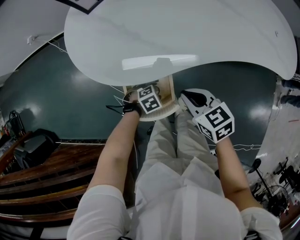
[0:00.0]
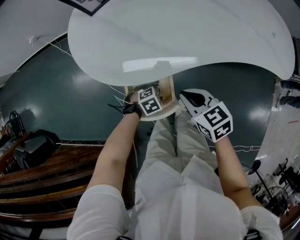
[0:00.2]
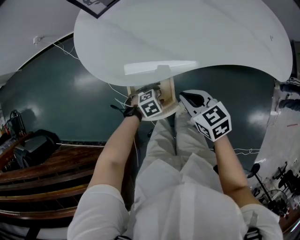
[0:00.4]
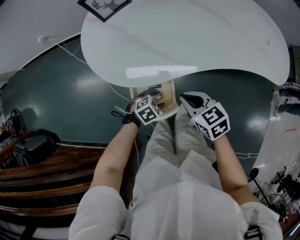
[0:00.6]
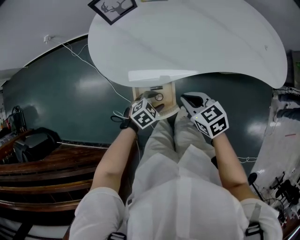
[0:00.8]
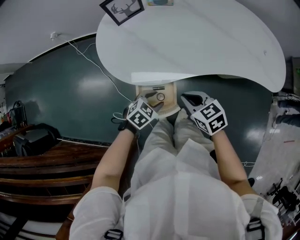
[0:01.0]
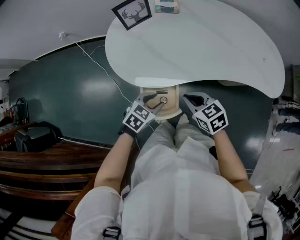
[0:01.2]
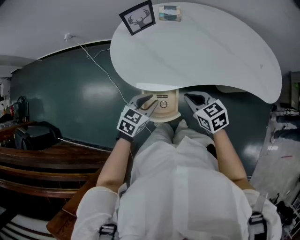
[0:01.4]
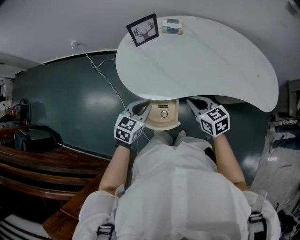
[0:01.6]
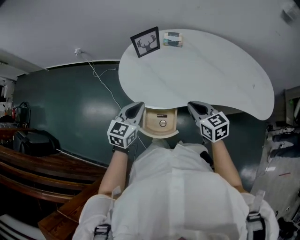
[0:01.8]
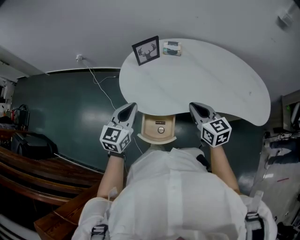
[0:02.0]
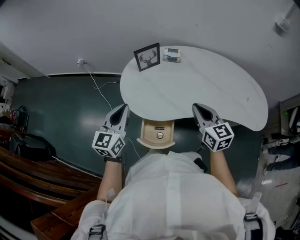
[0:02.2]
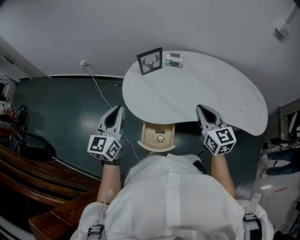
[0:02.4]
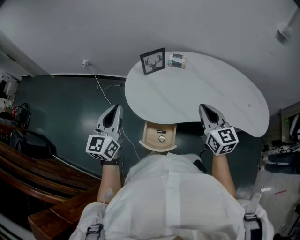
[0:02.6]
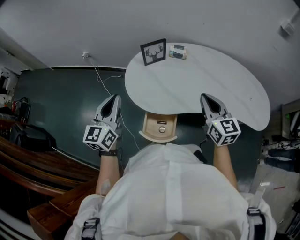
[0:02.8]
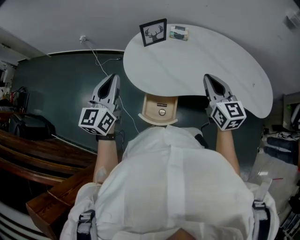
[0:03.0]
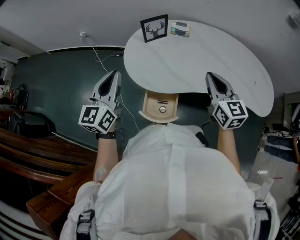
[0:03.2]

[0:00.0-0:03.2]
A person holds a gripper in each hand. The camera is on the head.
0:00.0 to 0:01.6: The right gripper shifts some 15 cm upward, while the left gripper heads upward, covering about 35 cm, angles its fingers upward, by approximately 40 degrees, and closes its fingers.
0:01.6 to 0:03.2: The left gripper moves upward and to the left, some 25 cm, and tilts its fingers about 30 degrees upward. The right gripper shifts roughly 15 cm upward, and swivels roughly 30 degrees.

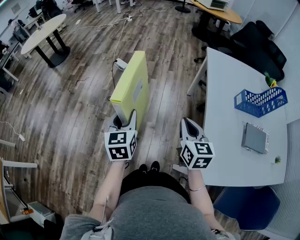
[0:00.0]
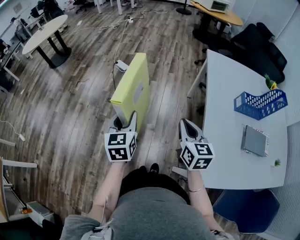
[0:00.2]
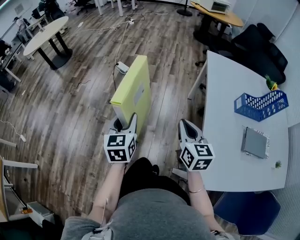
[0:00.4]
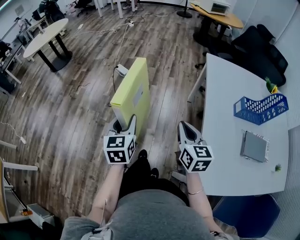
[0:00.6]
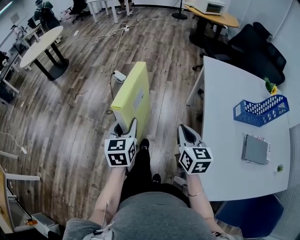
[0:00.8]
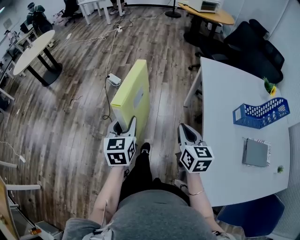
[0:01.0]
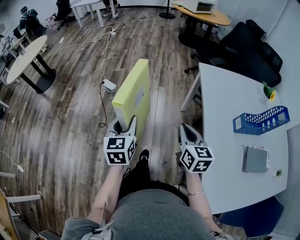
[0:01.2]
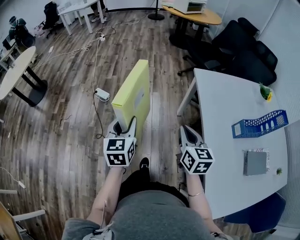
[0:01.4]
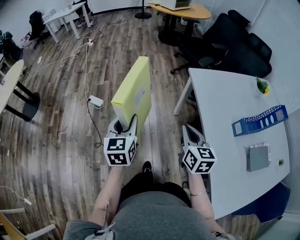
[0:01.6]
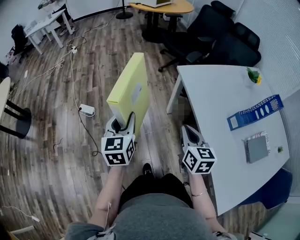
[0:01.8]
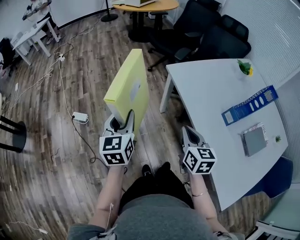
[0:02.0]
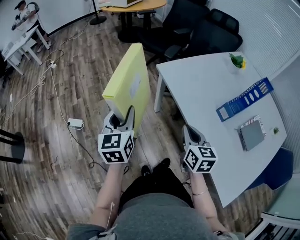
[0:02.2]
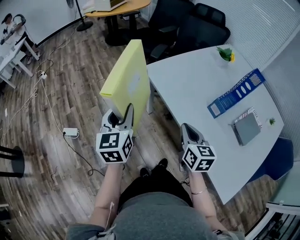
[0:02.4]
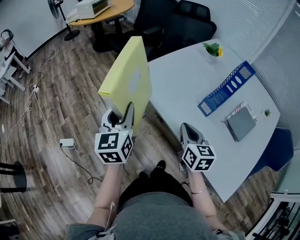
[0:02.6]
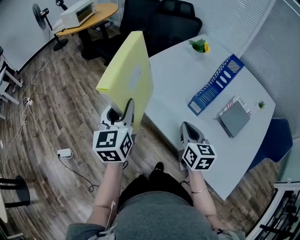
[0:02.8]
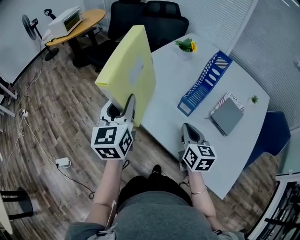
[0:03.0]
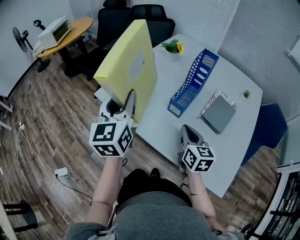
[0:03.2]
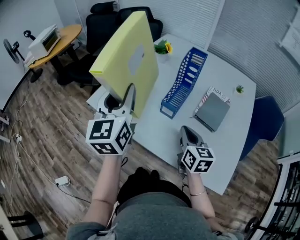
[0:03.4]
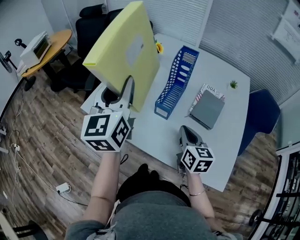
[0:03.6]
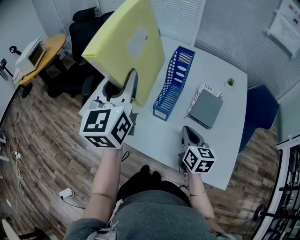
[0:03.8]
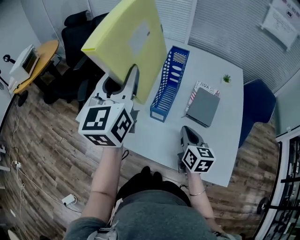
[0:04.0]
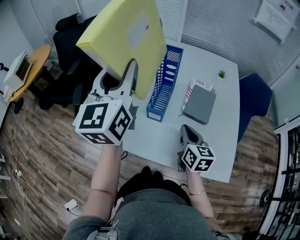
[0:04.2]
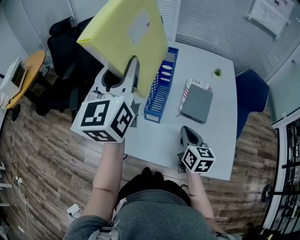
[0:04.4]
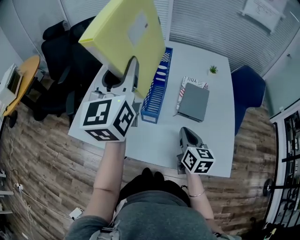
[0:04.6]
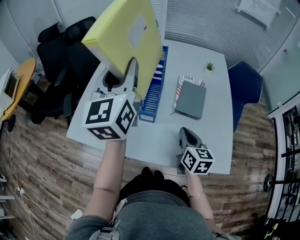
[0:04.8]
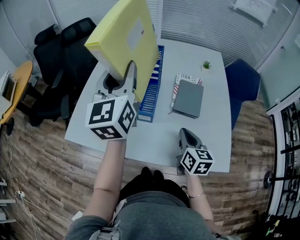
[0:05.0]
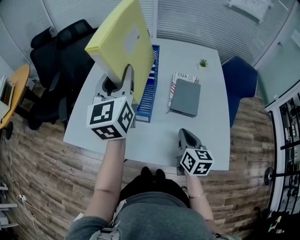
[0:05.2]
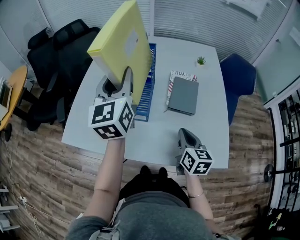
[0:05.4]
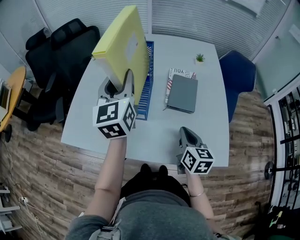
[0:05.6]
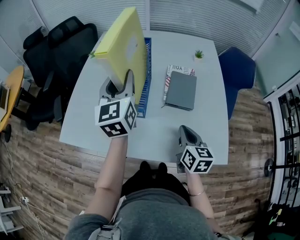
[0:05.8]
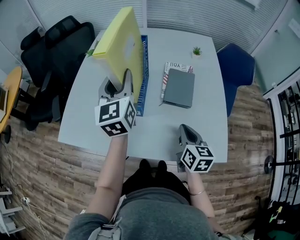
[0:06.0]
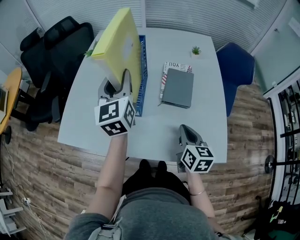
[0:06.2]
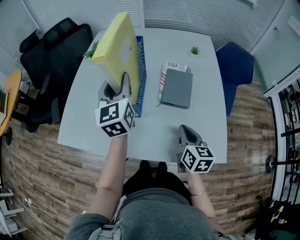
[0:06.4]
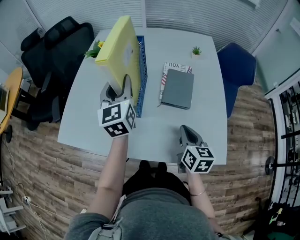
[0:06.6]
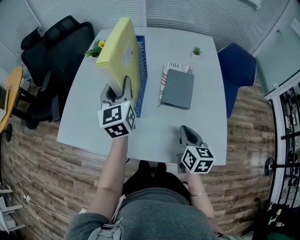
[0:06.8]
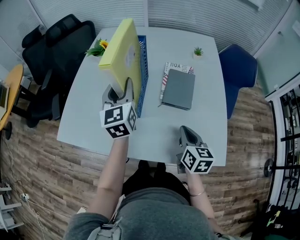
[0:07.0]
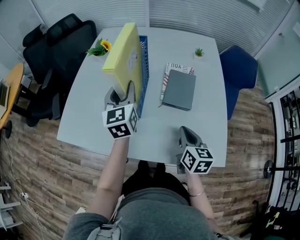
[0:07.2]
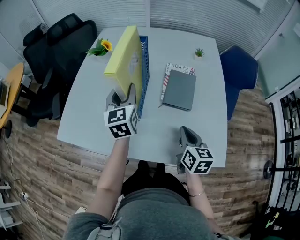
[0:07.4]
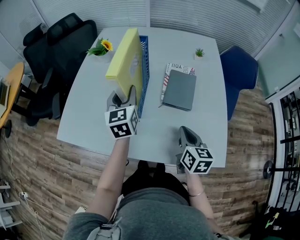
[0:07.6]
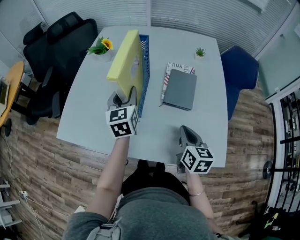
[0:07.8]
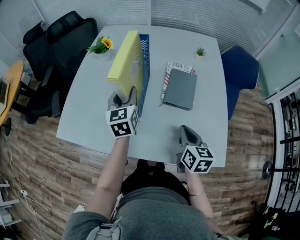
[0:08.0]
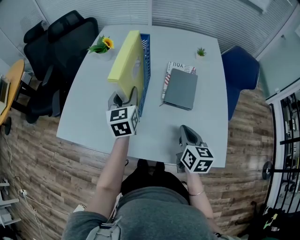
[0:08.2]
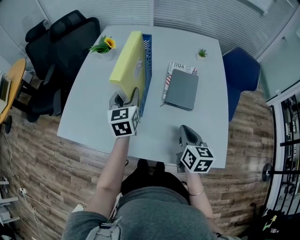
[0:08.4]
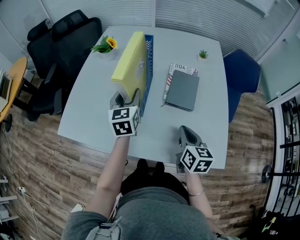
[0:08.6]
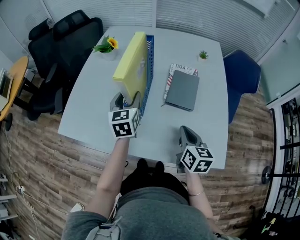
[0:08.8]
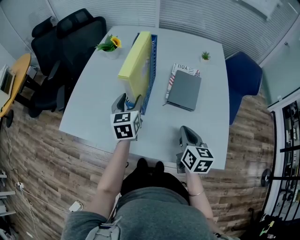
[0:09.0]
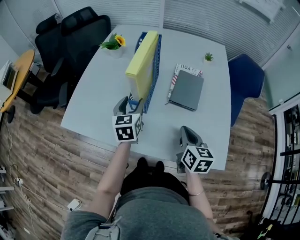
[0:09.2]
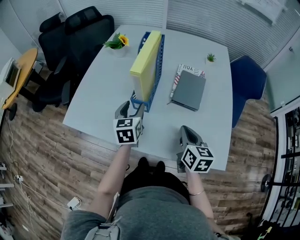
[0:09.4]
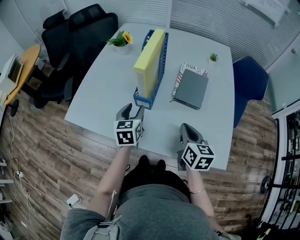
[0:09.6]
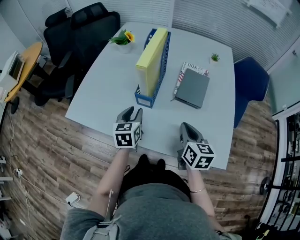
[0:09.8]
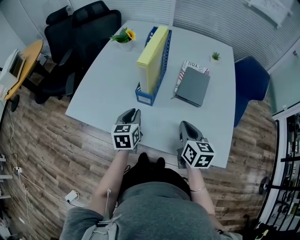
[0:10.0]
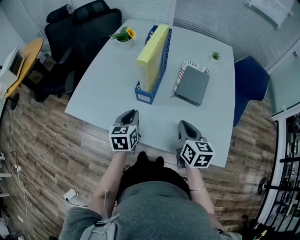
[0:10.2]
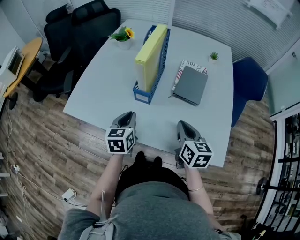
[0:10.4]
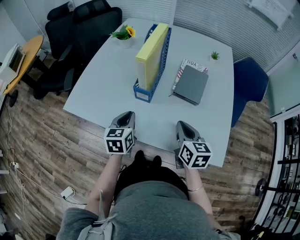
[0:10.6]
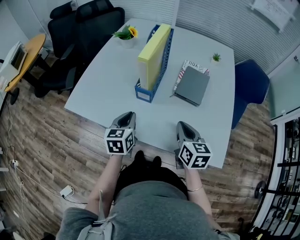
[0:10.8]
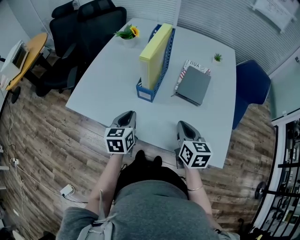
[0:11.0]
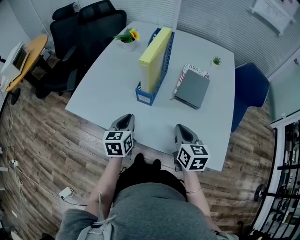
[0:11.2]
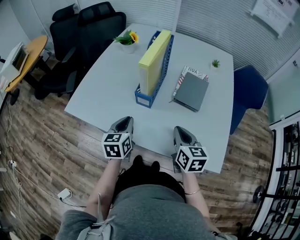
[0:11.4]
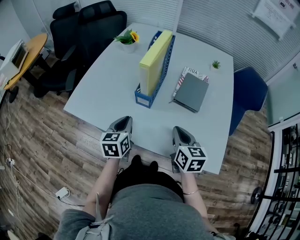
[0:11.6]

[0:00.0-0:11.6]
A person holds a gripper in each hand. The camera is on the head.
0:00.0 to 0:01.4: The grippers both shift forward by roughly 25 cm.
0:01.4 to 0:02.8: The right gripper shifts by about 25 cm, and changes its angle by roughly 40 degrees. Meanwhile the left gripper changes place by approximately 35 cm, and turns by approximately 40 degrees.
0:02.8 to 0:04.4: The left gripper changes place by some 35 cm, and turns by about 40 degrees. Meanwhile the right gripper shifts by roughly 15 cm, and swivels some 30 degrees.
0:04.4 to 0:05.8: The left gripper travels downward, forward and to the right by approximately 15 cm, while the right gripper travels to the right by some 5 cm.
0:05.8 to 0:07.2: The left gripper goes some 10 cm downward.
0:07.2 to 0:08.8: The left gripper travels downward by roughly 5 cm.
0:08.8 to 0:10.2: The left gripper goes roughly 15 cm backward and downward, and closes its fingers.
0:10.2 to 0:11.6: The grippers move only a little.

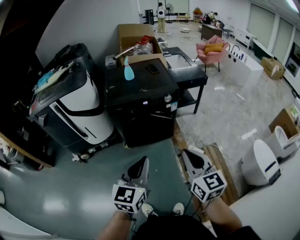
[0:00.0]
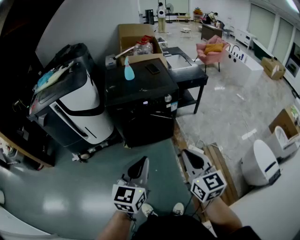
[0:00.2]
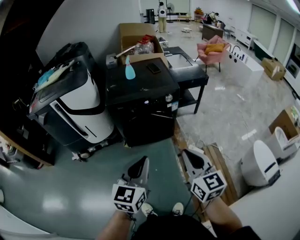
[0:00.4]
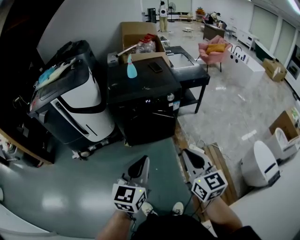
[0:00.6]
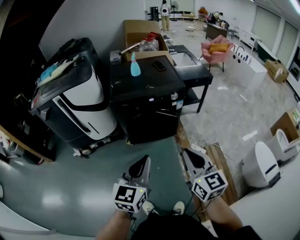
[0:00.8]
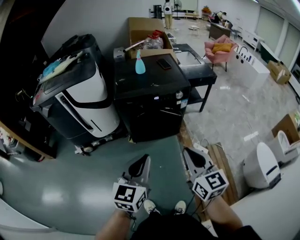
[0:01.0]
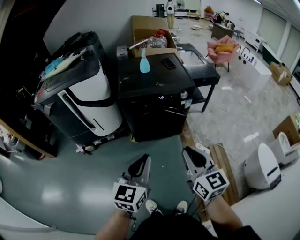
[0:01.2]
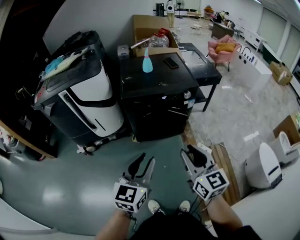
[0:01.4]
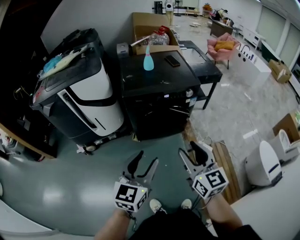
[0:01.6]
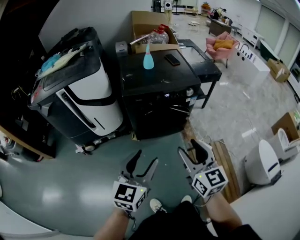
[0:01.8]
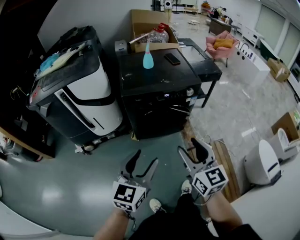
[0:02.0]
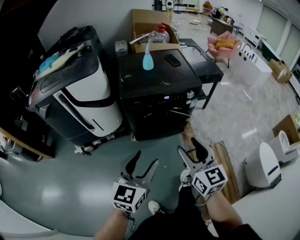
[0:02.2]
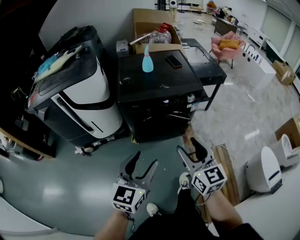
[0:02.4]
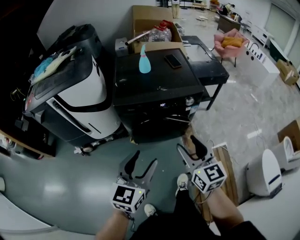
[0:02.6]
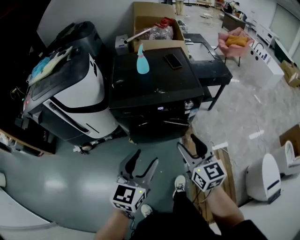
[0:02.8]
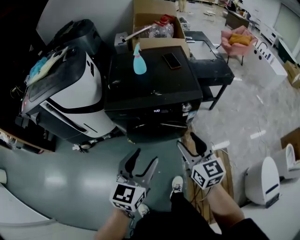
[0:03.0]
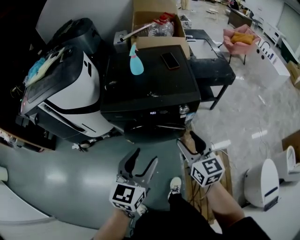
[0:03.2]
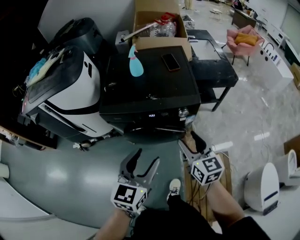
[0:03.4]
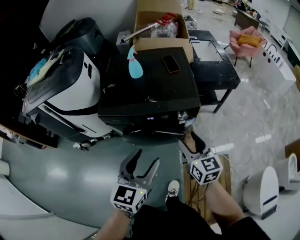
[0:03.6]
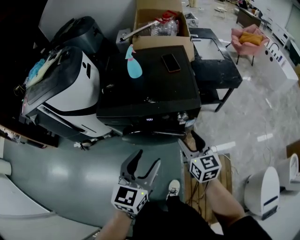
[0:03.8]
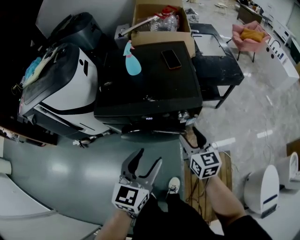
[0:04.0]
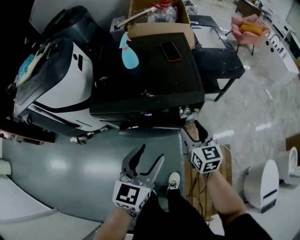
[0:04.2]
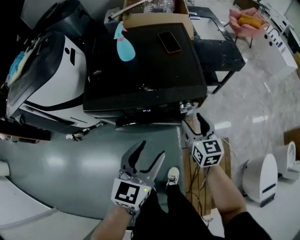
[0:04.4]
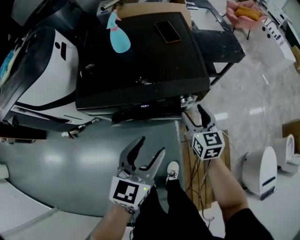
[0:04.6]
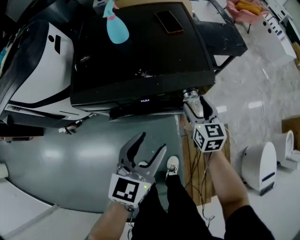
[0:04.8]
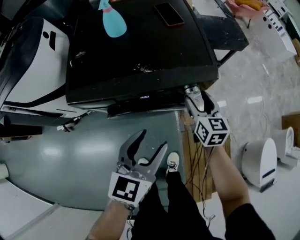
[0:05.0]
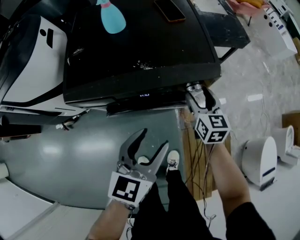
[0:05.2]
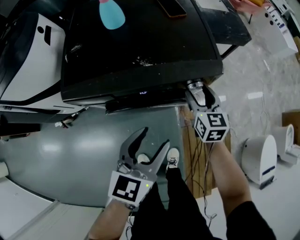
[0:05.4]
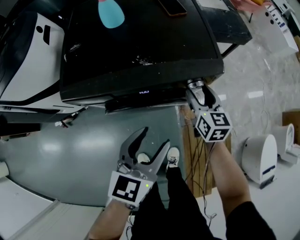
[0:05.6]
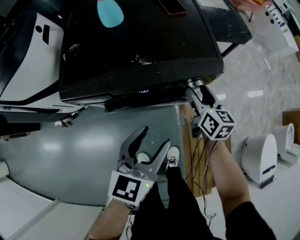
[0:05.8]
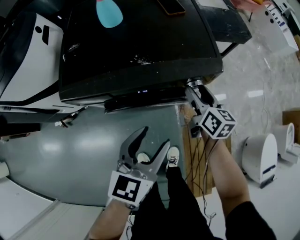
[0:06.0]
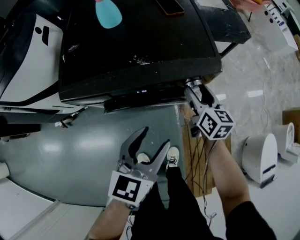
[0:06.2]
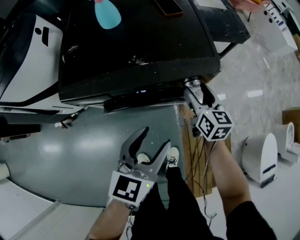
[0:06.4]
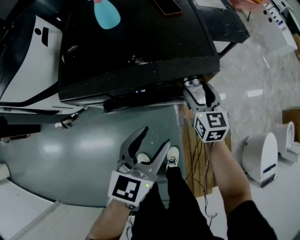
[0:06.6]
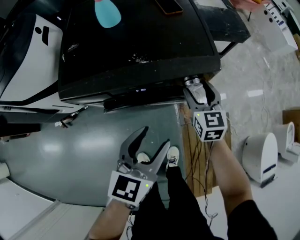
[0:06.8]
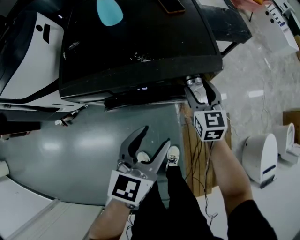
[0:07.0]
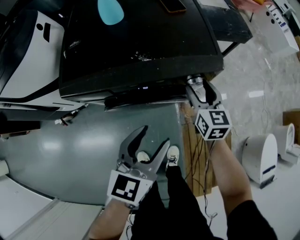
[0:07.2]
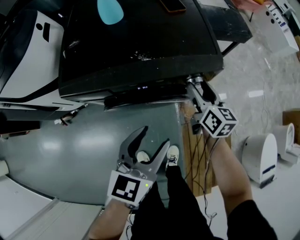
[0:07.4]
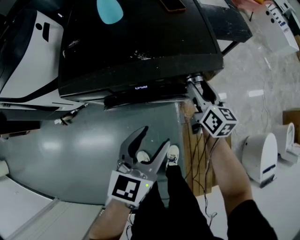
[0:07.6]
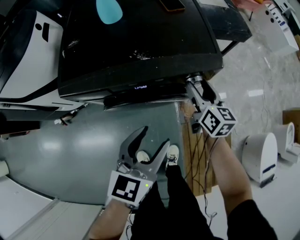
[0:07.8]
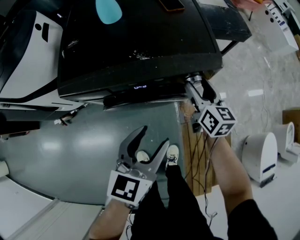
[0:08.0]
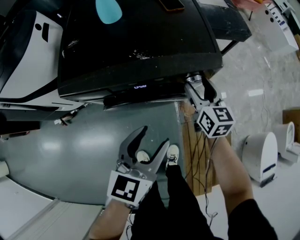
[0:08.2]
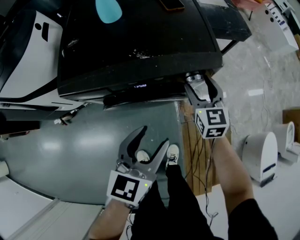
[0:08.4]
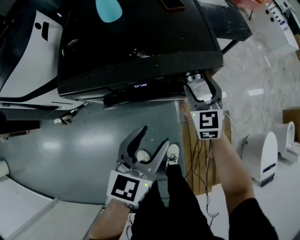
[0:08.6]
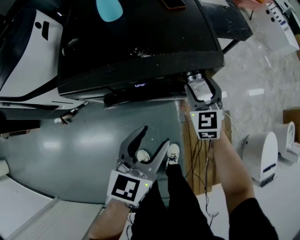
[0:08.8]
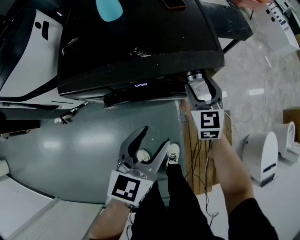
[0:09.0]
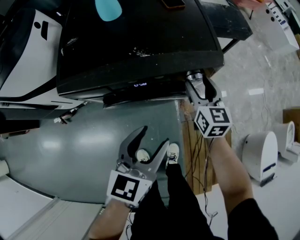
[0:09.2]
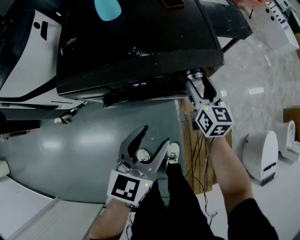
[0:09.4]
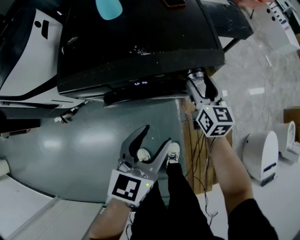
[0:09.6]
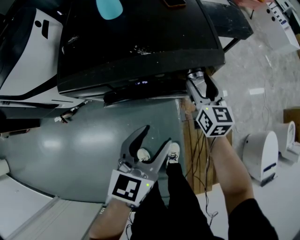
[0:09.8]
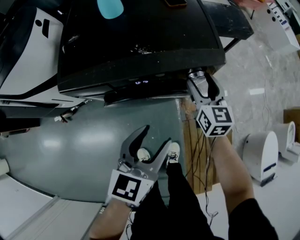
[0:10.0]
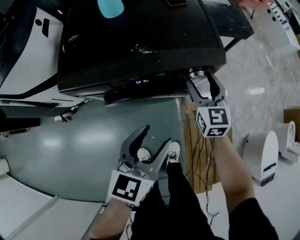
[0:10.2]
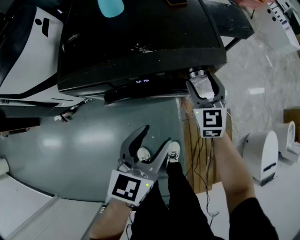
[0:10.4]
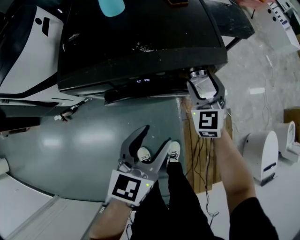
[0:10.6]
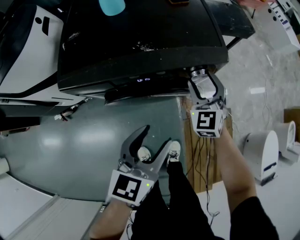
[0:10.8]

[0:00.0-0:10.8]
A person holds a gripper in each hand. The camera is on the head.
0:00.0 to 0:01.6: Both grippers move to the left, approximately 15 cm. The right gripper opens. Meanwhile the left gripper opens its fingers.
0:01.6 to 0:03.0: The two grippers go some 25 cm forward and to the right.
0:03.0 to 0:04.6: The left gripper moves forward, downward and to the right, approximately 20 cm; the right gripper is displaced forward and downward by roughly 25 cm.
0:04.6 to 0:06.2: Both grippers move downward, about 5 cm. The right gripper turns by about 20 degrees.
0:09.2 to 0:10.8: The right gripper swivels approximately 40 degrees.
